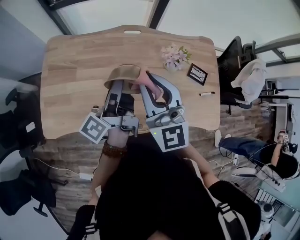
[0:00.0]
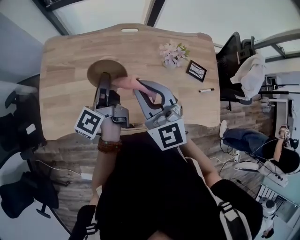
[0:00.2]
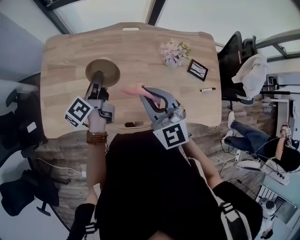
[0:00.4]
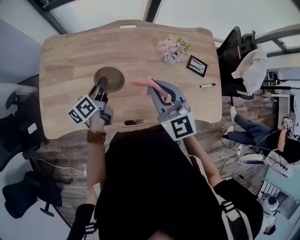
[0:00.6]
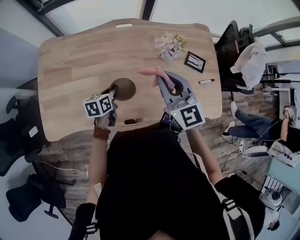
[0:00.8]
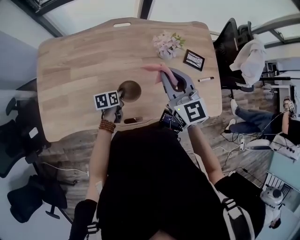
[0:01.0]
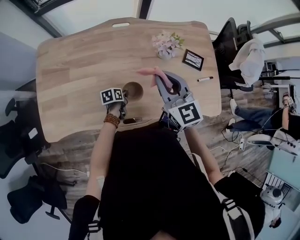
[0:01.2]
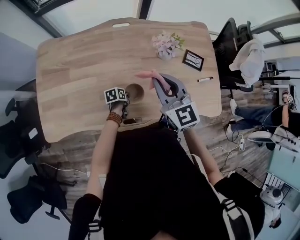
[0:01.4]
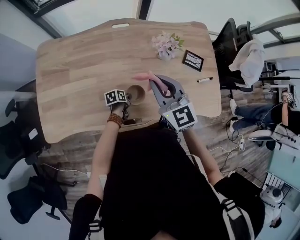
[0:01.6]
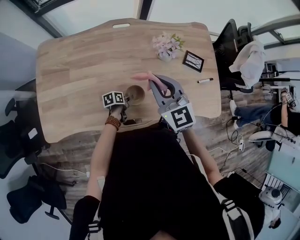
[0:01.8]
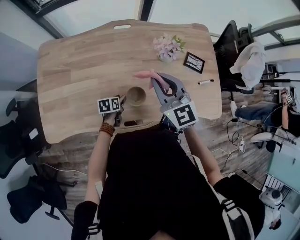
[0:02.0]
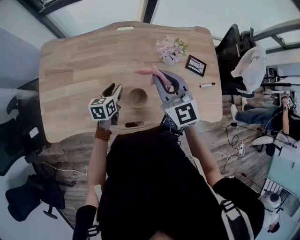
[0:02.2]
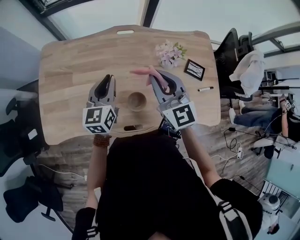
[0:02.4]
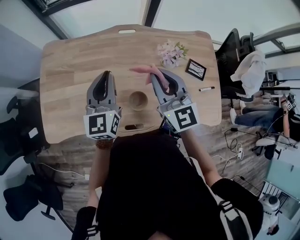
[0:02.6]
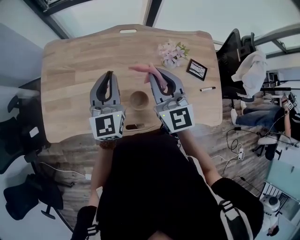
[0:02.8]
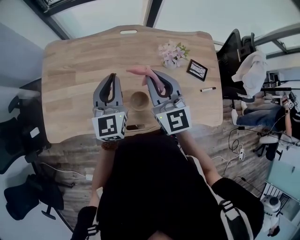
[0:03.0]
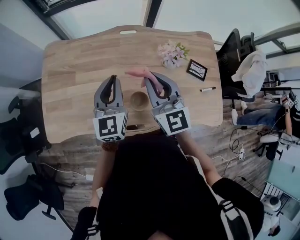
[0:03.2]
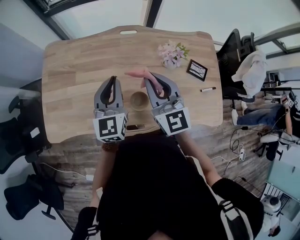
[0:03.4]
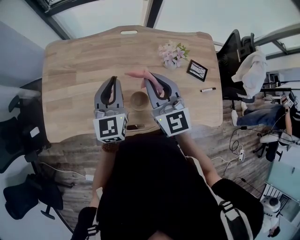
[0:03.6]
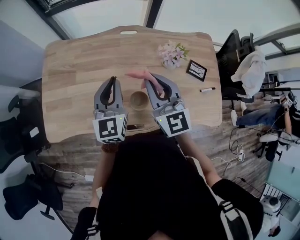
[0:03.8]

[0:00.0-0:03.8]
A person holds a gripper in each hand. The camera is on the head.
0:00.0 to 0:01.2: The right gripper travels downward by about 10 cm; the left gripper is displaced downward by some 40 cm, and points its fingers roughly 60 degrees further downward.
0:01.2 to 0:02.6: The left gripper heads upward, covering approximately 40 cm, points its fingers approximately 50 degrees further upward, and opens, then closes again, while the right gripper goes some 5 cm upward.
0:02.6 to 0:03.8: The grippers move only a little.

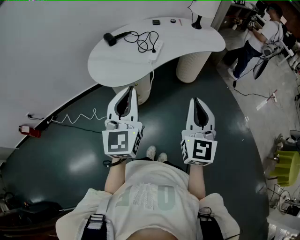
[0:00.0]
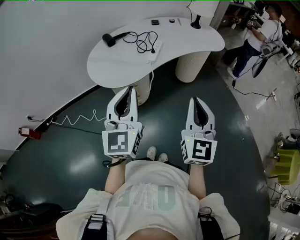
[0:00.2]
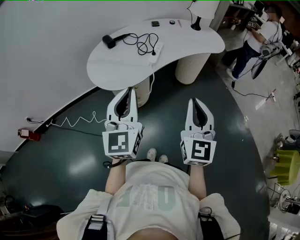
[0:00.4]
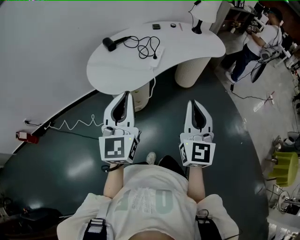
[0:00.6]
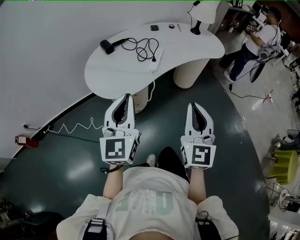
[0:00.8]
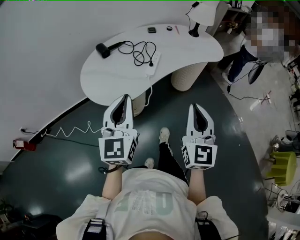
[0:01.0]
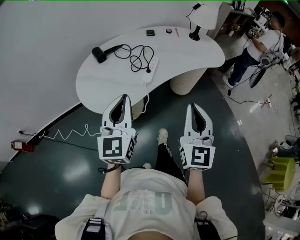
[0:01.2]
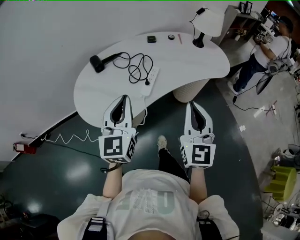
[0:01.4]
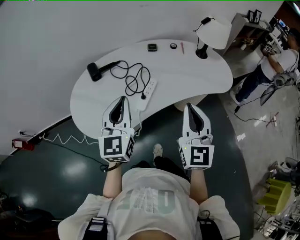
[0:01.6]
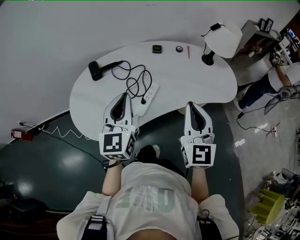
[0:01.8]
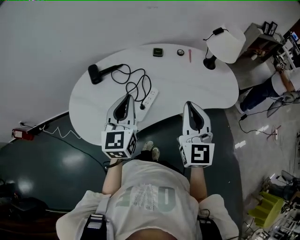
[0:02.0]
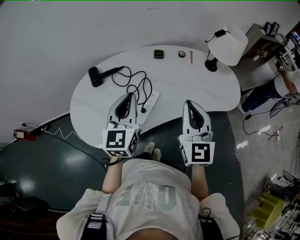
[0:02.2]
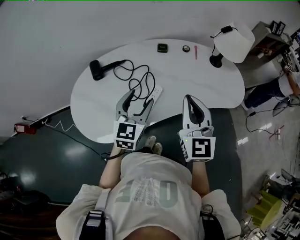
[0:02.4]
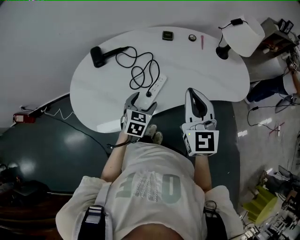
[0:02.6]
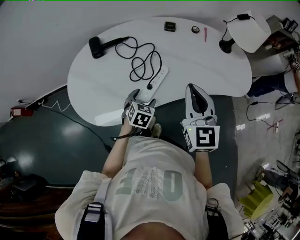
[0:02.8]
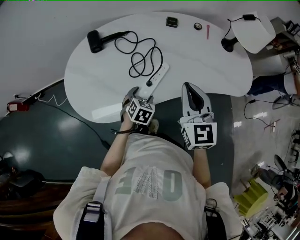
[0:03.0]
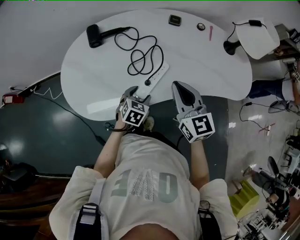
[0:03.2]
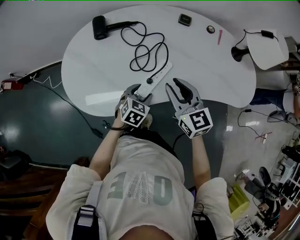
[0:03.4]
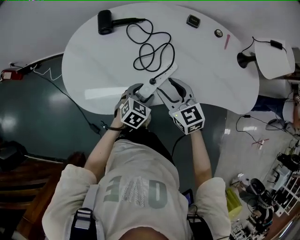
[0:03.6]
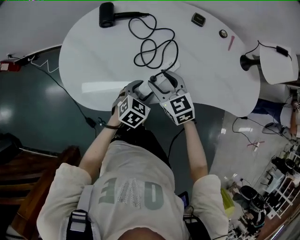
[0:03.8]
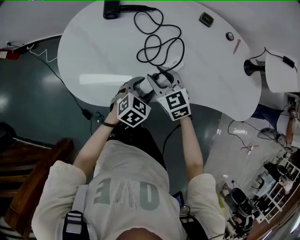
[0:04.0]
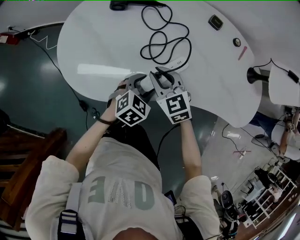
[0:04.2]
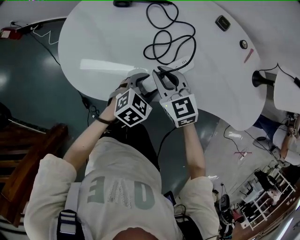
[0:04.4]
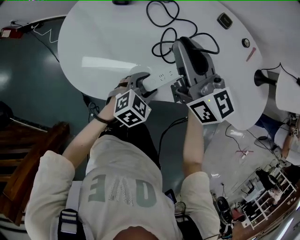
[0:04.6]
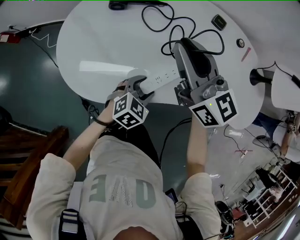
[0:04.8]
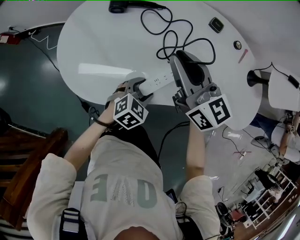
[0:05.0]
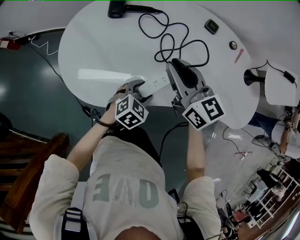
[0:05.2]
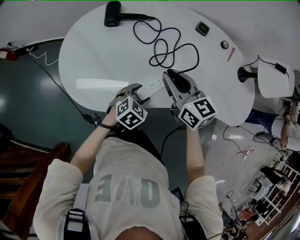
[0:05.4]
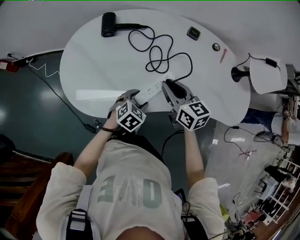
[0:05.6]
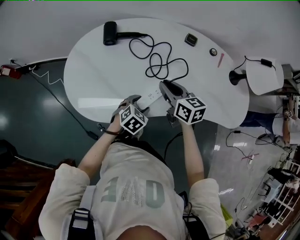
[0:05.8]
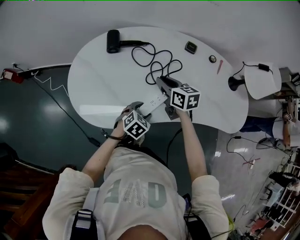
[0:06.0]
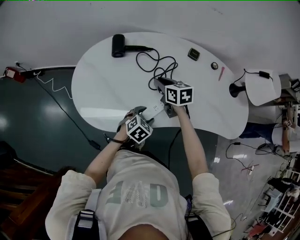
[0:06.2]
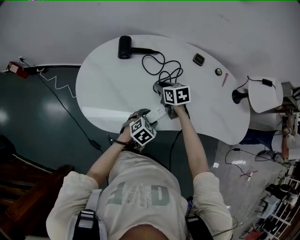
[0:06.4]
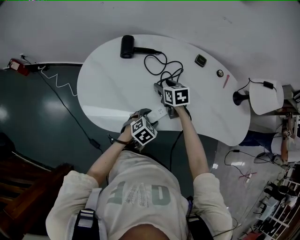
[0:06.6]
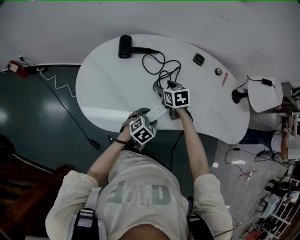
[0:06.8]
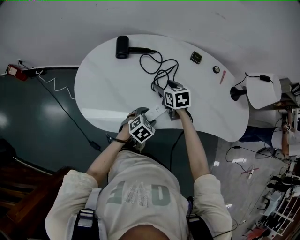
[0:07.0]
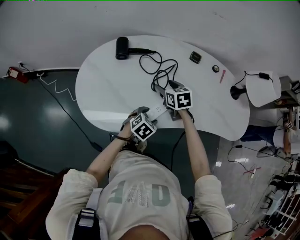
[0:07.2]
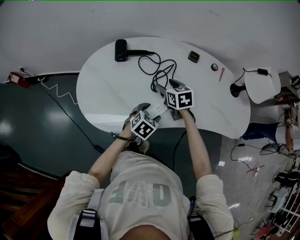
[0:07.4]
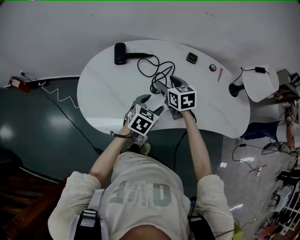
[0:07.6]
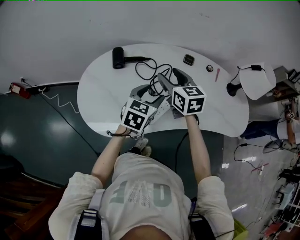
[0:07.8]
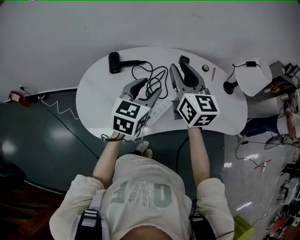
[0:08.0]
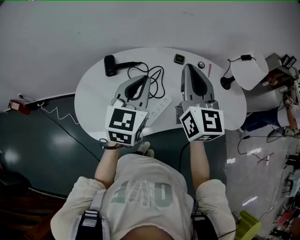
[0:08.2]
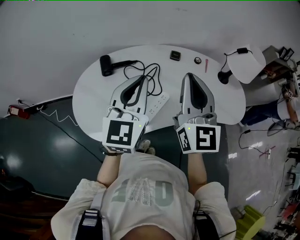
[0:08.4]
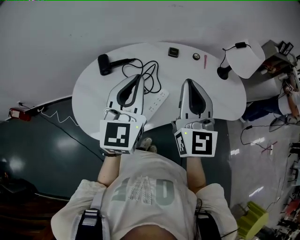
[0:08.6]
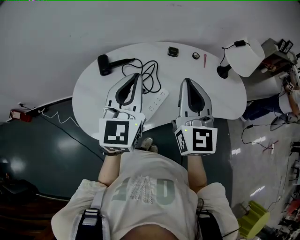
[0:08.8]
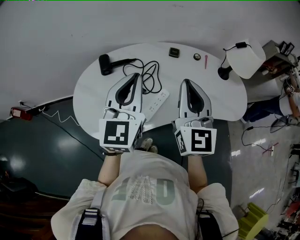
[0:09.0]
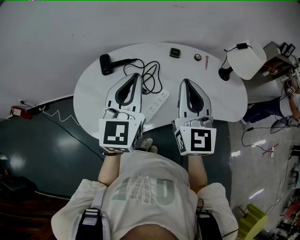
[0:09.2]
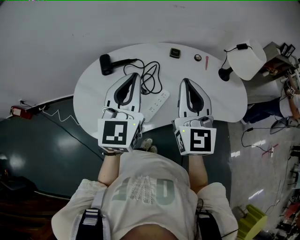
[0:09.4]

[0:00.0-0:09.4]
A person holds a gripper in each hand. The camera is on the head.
0:00.0 to 0:01.6: Both grippers move forward, some 30 cm.
0:01.6 to 0:03.2: The left gripper heads downward, covering approximately 30 cm, tips its fingers downward by roughly 50 degrees, and opens its fingers, while the right gripper moves forward, downward and to the left, some 20 cm, and swivels about 40 degrees.
0:03.2 to 0:04.8: The right gripper is displaced forward and to the left by some 15 cm, travels downward and back again, approximately 15 cm each way, rotates roughly 30 degrees, and opens and closes again.
0:04.8 to 0:06.2: The right gripper heads downward, covering roughly 20 cm, and tilts its fingers approximately 40 degrees downward.
0:06.2 to 0:07.8: The left gripper moves upward and forward, roughly 20 cm, and rotates about 30 degrees; the right gripper goes roughly 15 cm upward, changes its angle by about 20 degrees, and opens.
0:07.8 to 0:09.4: The left gripper travels upward by roughly 20 cm, turns by roughly 30 degrees, and closes its fingers; the right gripper moves upward, backward and to the right, roughly 20 cm, rotates some 40 degrees, and closes its fingers.

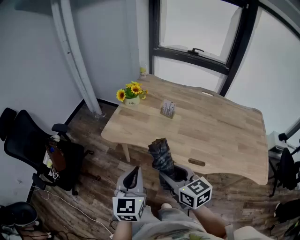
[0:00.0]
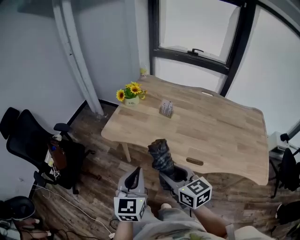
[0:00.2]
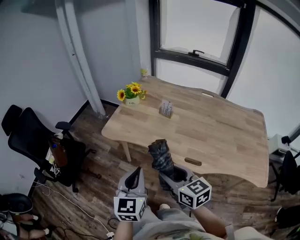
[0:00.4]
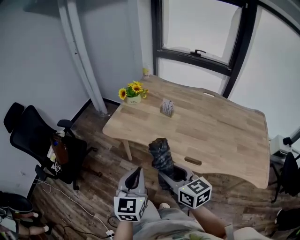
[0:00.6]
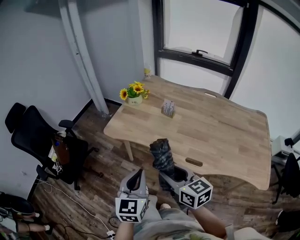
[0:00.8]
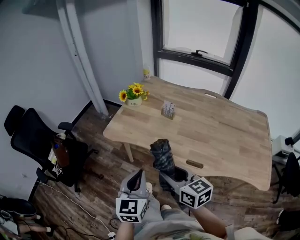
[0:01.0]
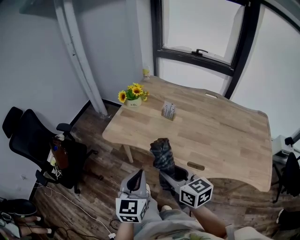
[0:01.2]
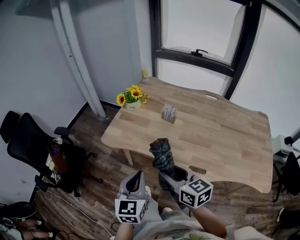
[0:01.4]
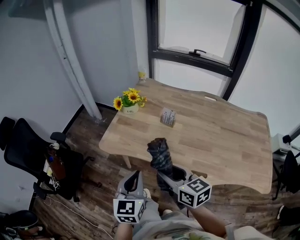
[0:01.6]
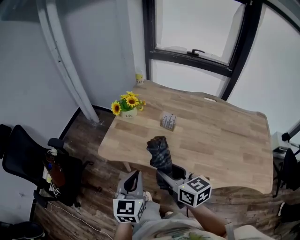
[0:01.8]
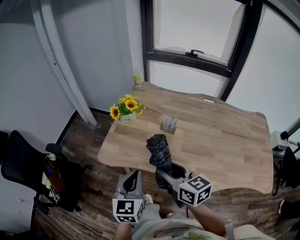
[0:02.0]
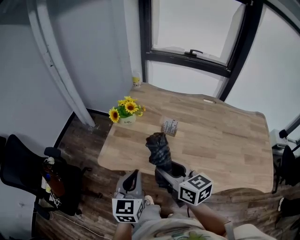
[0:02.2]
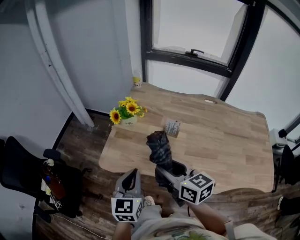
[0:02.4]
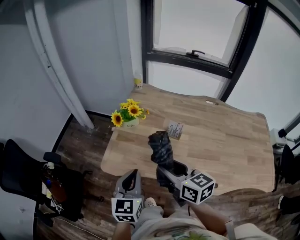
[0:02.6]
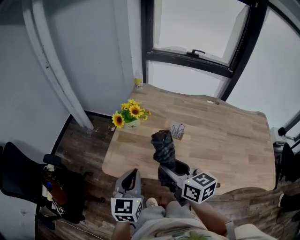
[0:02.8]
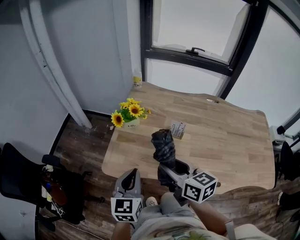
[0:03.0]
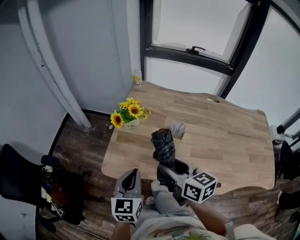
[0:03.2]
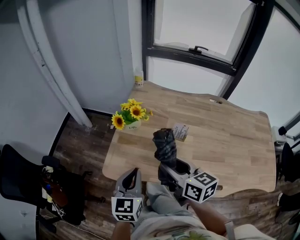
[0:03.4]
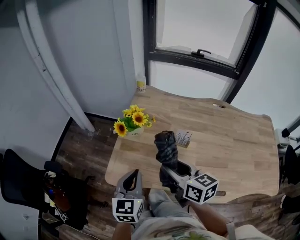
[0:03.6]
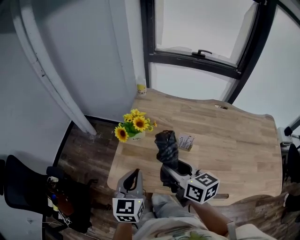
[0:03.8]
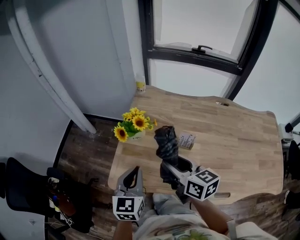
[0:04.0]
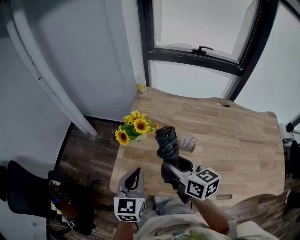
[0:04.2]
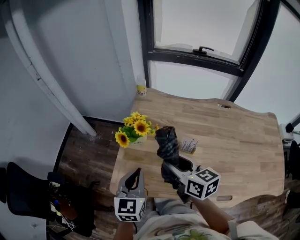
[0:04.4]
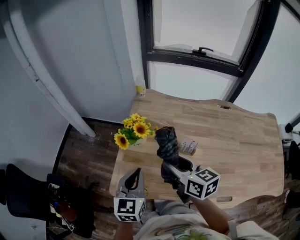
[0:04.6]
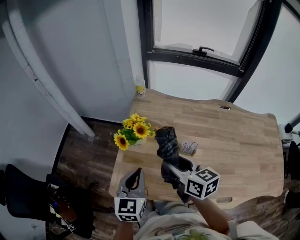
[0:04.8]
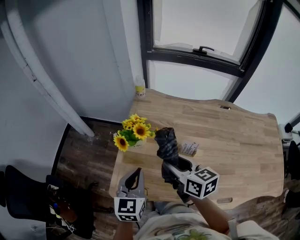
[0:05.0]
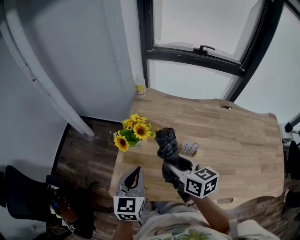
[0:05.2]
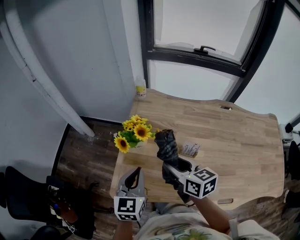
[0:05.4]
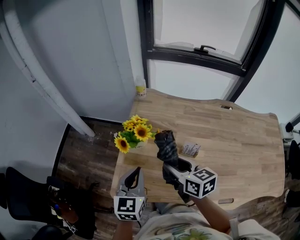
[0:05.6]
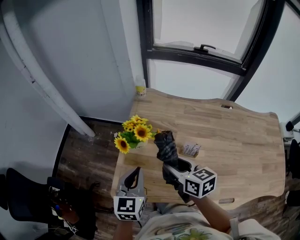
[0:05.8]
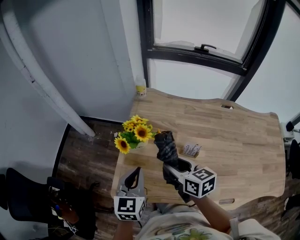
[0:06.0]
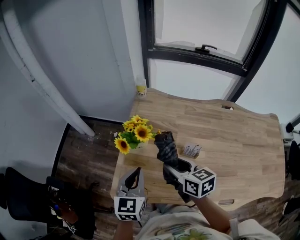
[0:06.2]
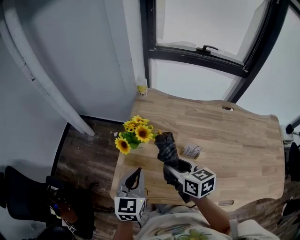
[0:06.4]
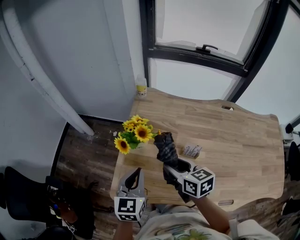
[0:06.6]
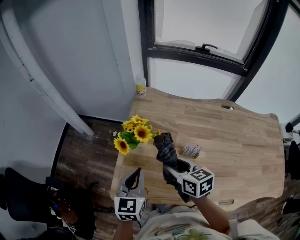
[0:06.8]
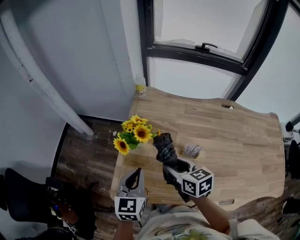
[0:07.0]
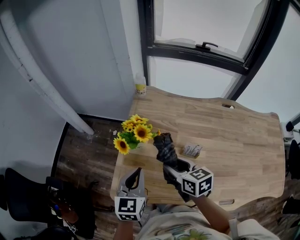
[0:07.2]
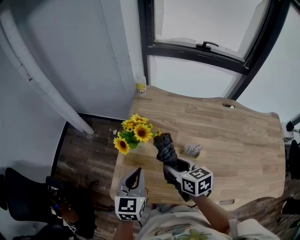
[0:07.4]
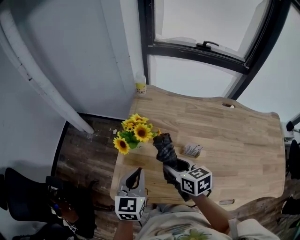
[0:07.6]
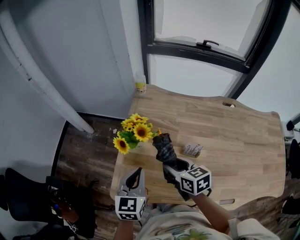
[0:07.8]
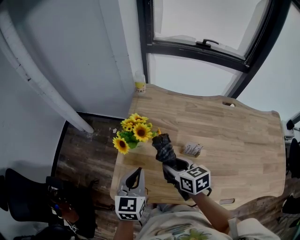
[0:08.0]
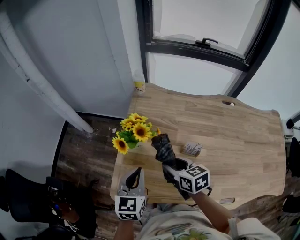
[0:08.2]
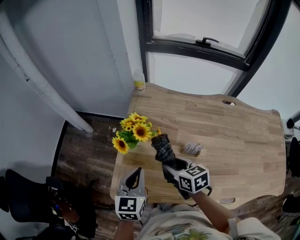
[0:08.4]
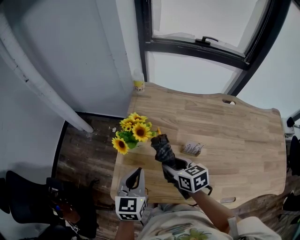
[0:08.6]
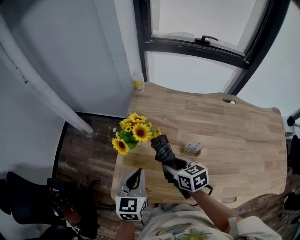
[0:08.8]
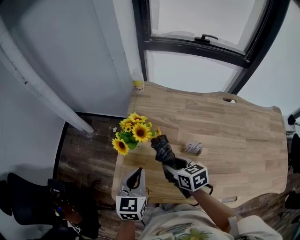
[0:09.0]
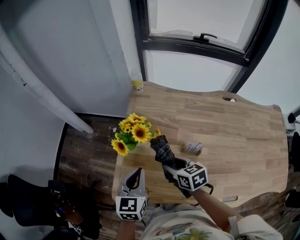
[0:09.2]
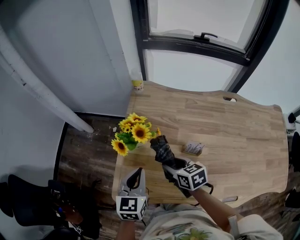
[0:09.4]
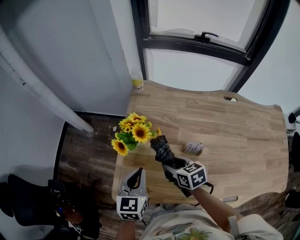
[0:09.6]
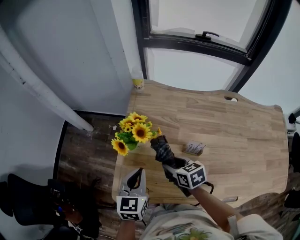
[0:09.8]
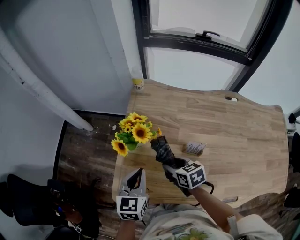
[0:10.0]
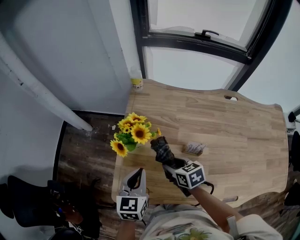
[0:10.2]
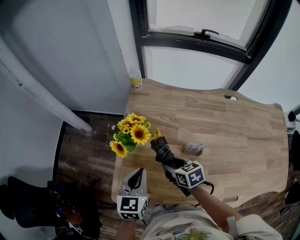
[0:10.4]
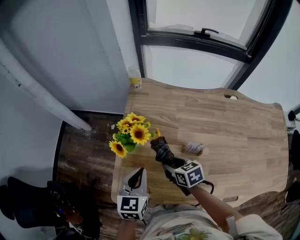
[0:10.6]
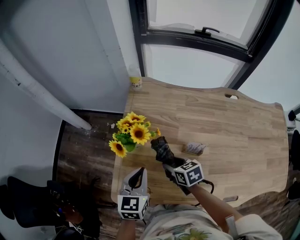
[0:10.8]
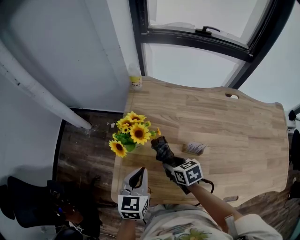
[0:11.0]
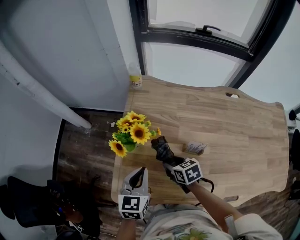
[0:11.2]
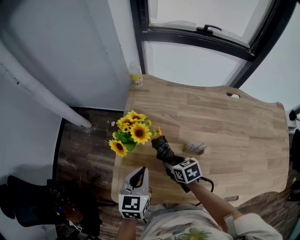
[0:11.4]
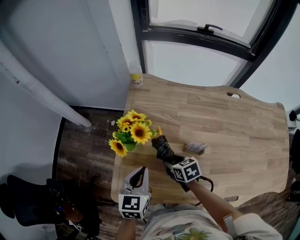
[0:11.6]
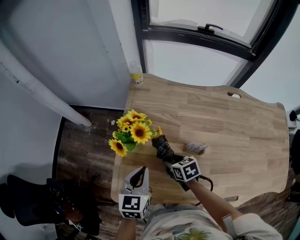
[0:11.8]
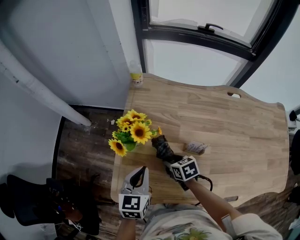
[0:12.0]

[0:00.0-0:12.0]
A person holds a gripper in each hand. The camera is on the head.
0:00.0 to 0:01.6: Both grippers travel together forward, about 5 cm.
0:01.6 to 0:03.0: Both grippers travel together forward, about 20 cm.
0:03.0 to 0:04.4: The two grippers go approximately 15 cm forward.
0:04.4 to 0:06.0: The left gripper changes place by some 5 cm, while the right gripper shifts approximately 5 cm downward.
0:06.0 to 0:07.6: The grippers move only a little.
0:07.6 to 0:09.0: The grippers move only a little.
0:09.0 to 0:10.4: The right gripper moves downward, some 5 cm.
0:10.4 to 0:12.0: The right gripper is displaced downward by roughly 5 cm.
